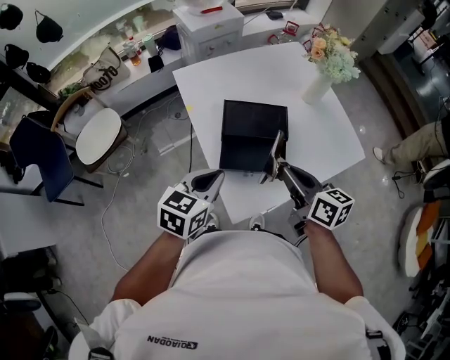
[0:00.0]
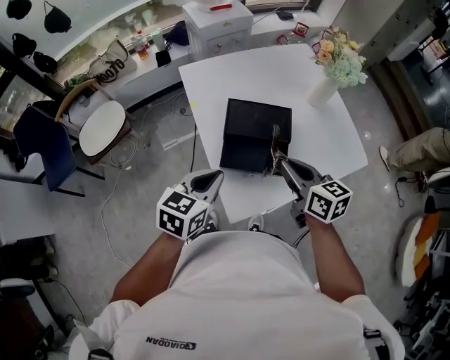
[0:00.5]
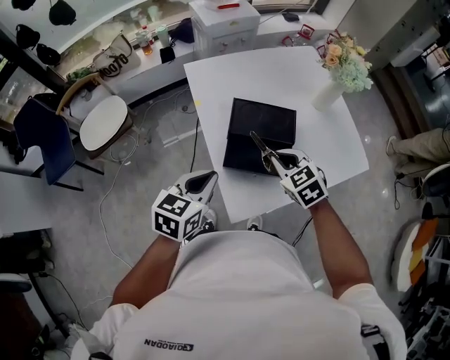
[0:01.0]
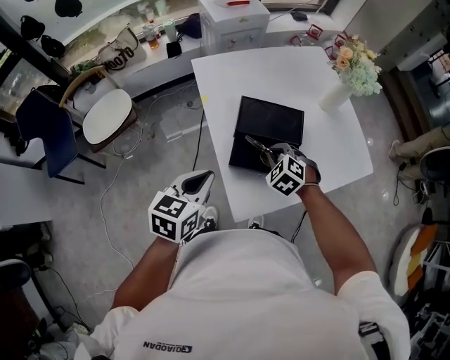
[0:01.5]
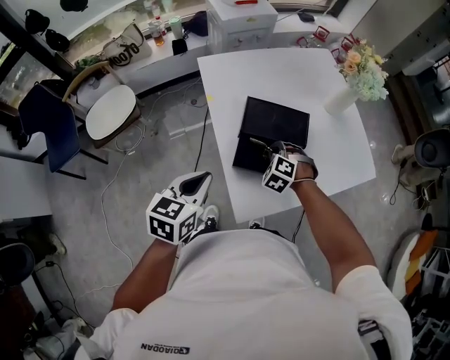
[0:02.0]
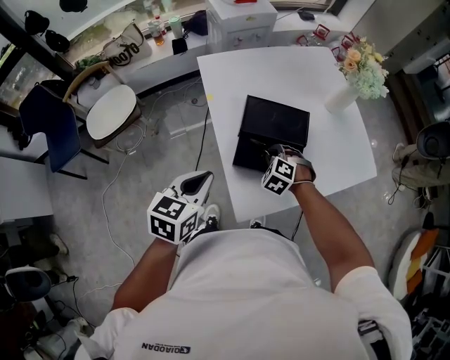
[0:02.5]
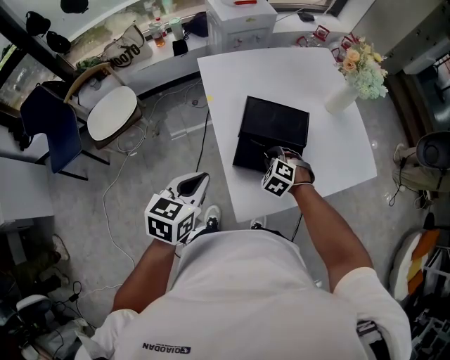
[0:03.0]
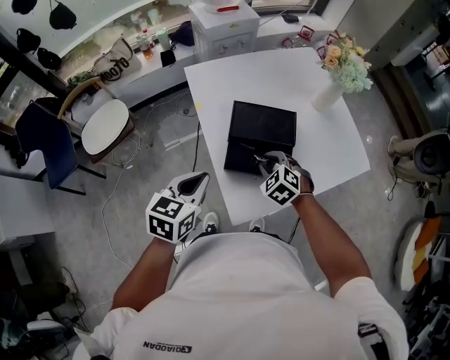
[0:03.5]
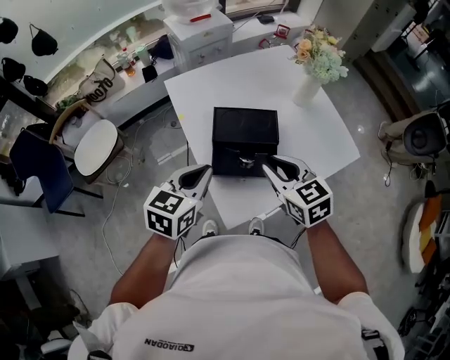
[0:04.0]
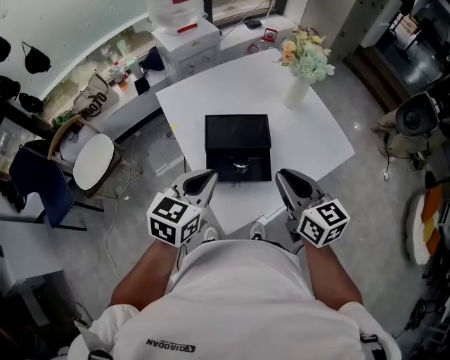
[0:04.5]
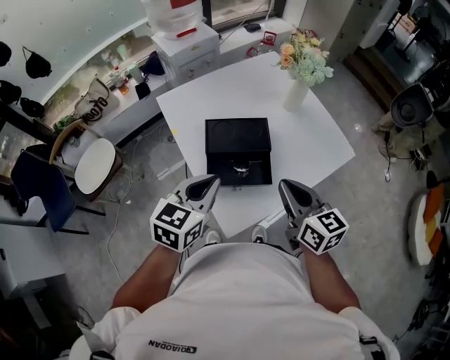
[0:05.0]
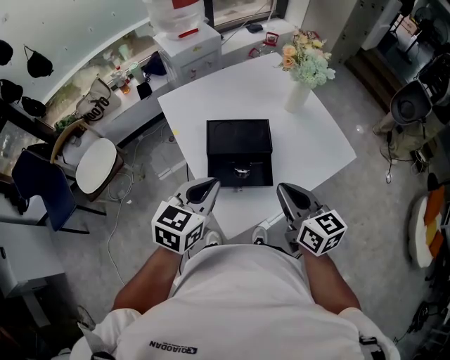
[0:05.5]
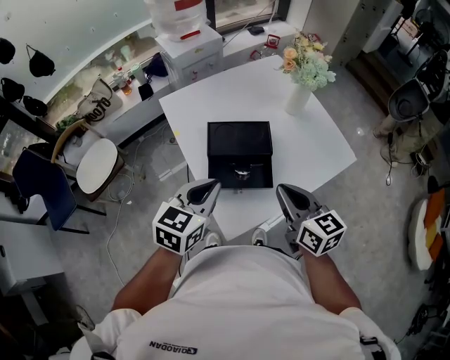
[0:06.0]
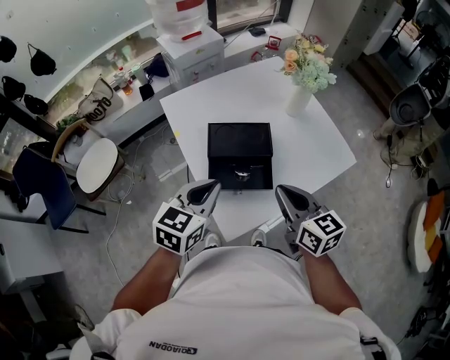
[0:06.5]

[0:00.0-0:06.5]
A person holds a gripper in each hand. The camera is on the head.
0:00.0 to 0:02.0: The right gripper travels downward and forward by about 20 cm, and rotates around the line of its fingers by roughly 80 degrees, counterclockwise from behind, while the left gripper is displaced to the left by approximately 5 cm.
0:02.0 to 0:04.5: The left gripper shifts approximately 10 cm to the right and upward. The right gripper moves upward and to the right, roughly 25 cm, and rotates around the line of its fingers by approximately 70 degrees, clockwise from behind.
0:04.5 to 0:06.5: The grippers move only a little.

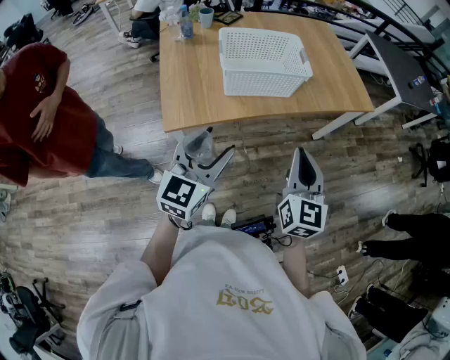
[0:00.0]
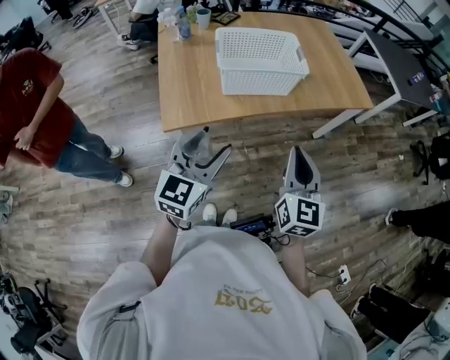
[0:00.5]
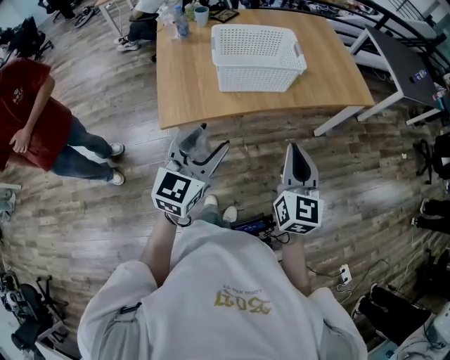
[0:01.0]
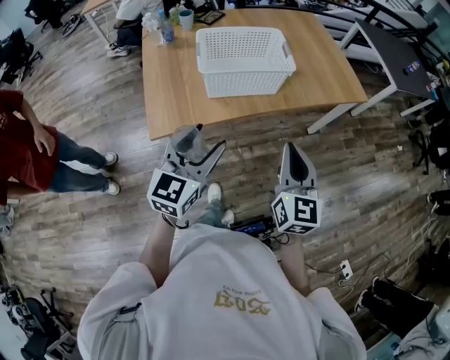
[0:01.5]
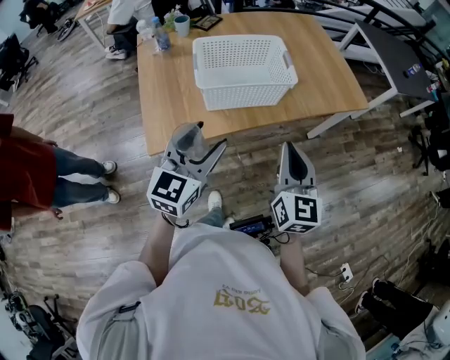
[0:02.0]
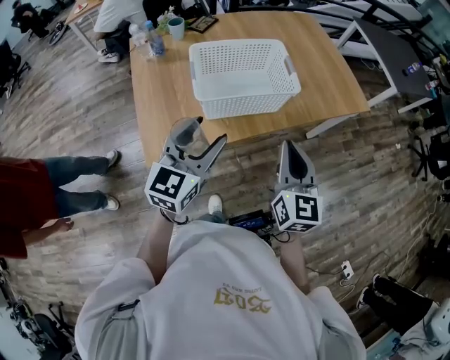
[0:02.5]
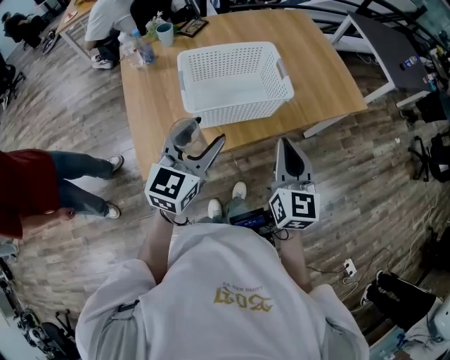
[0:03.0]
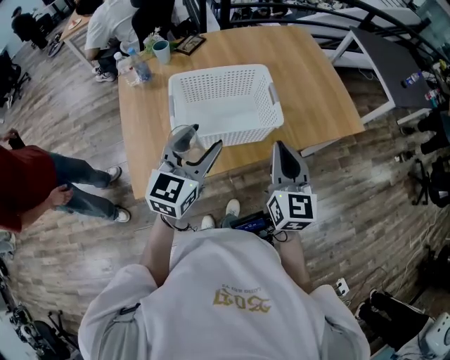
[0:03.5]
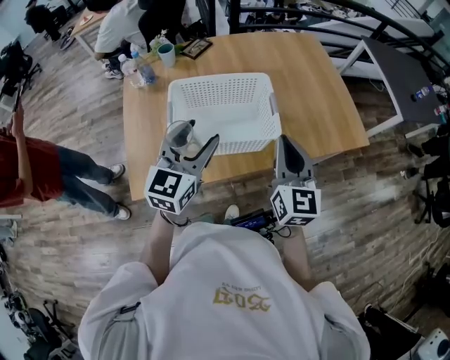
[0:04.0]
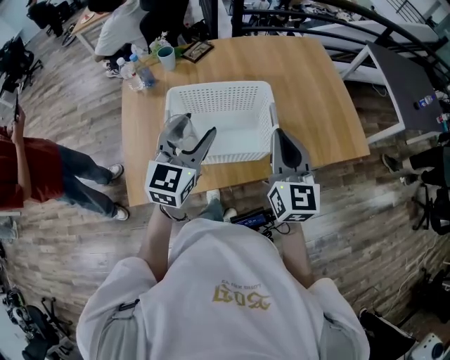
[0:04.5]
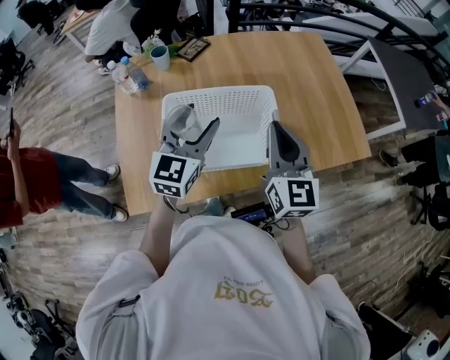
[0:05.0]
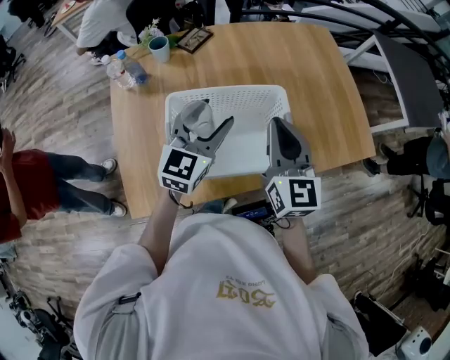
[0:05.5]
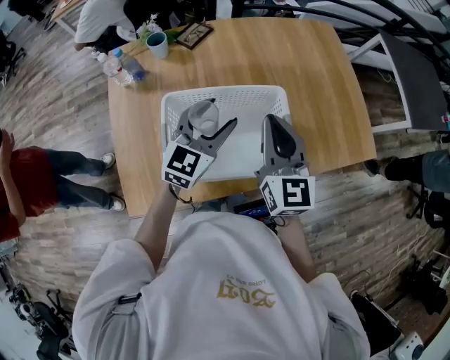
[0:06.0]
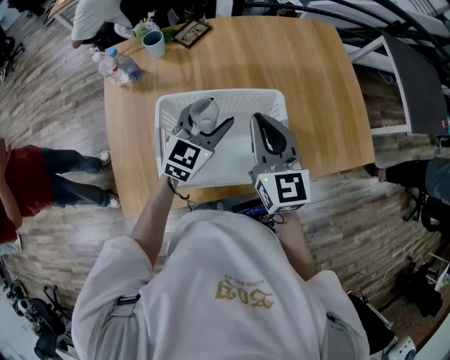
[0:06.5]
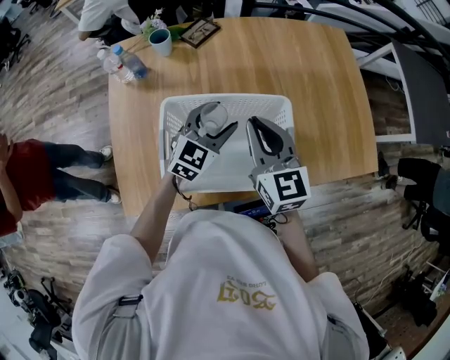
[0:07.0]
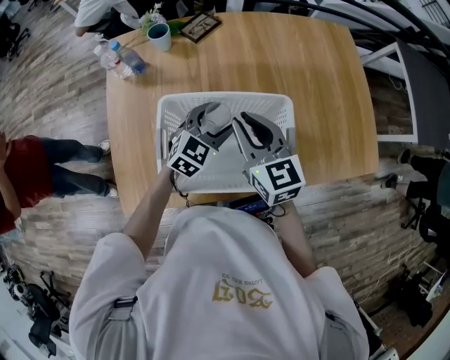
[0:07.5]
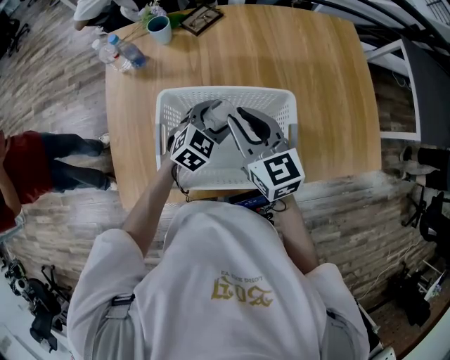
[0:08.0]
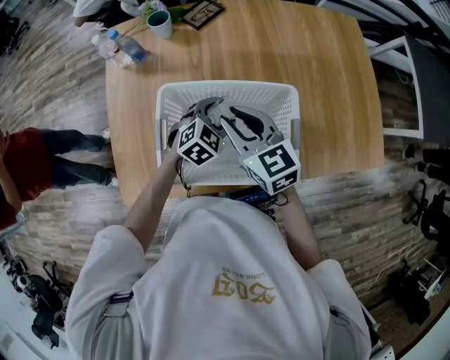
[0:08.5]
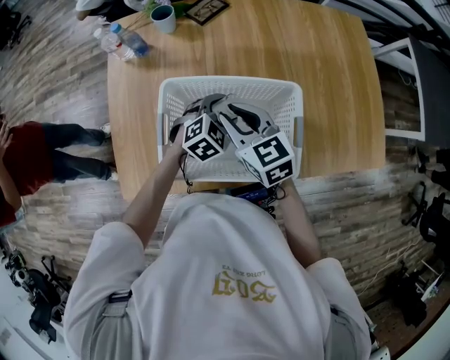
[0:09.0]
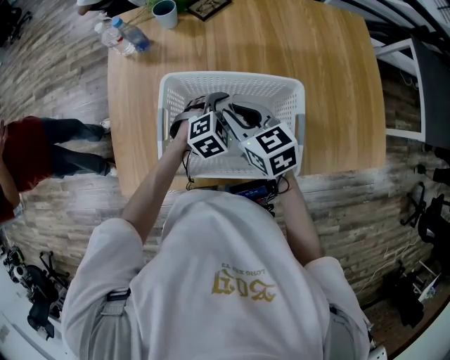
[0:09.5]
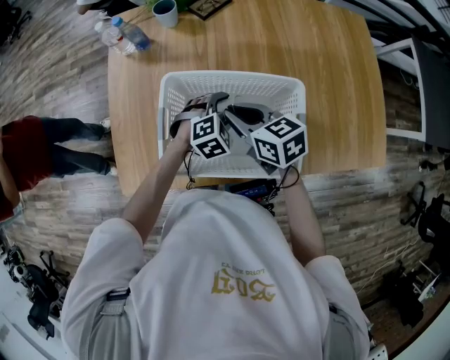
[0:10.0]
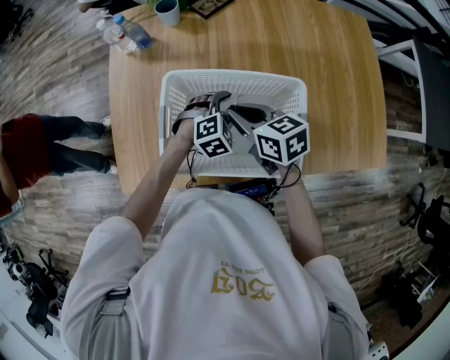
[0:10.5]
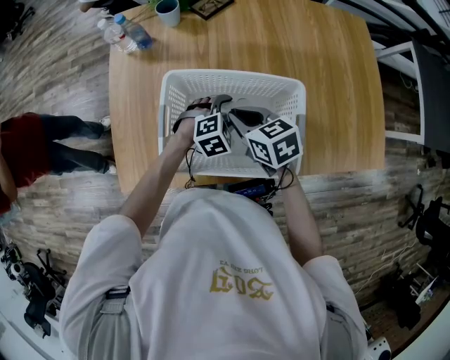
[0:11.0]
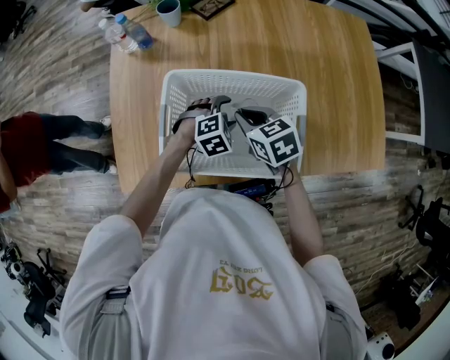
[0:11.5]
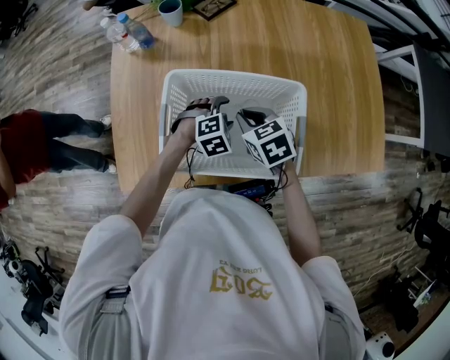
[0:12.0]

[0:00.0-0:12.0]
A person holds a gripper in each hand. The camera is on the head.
0:00.0 to 0:02.0: The grippers both shift forward by roughly 10 cm.
0:02.0 to 0:04.0: The grippers both shift forward by some 20 cm.
0:04.0 to 0:06.0: The right gripper travels forward and to the left by some 15 cm, while the left gripper goes about 15 cm forward.
0:06.0 to 0:08.0: The right gripper moves to the left and downward, some 10 cm, and swivels approximately 30 degrees; the left gripper heads downward, covering some 15 cm, and rotates approximately 30 degrees.
0:08.0 to 0:10.0: Both grippers travel together downward, roughly 5 cm. The right gripper rotates some 30 degrees. Meanwhile the left gripper changes its angle by some 20 degrees.
0:10.0 to 0:12.0: The right gripper is displaced downward by roughly 5 cm, and swivels about 20 degrees.

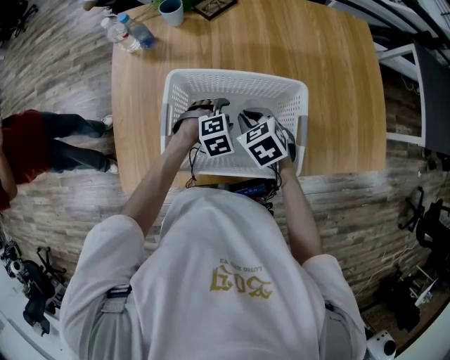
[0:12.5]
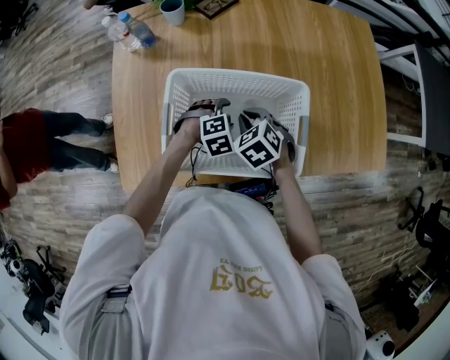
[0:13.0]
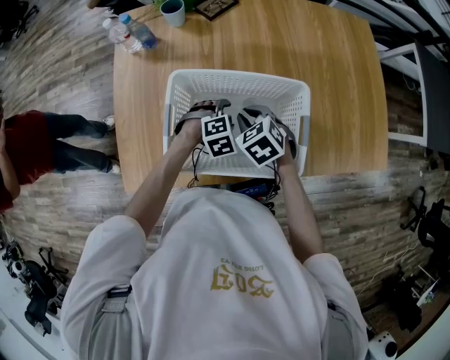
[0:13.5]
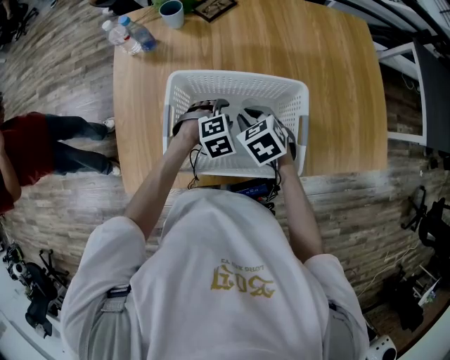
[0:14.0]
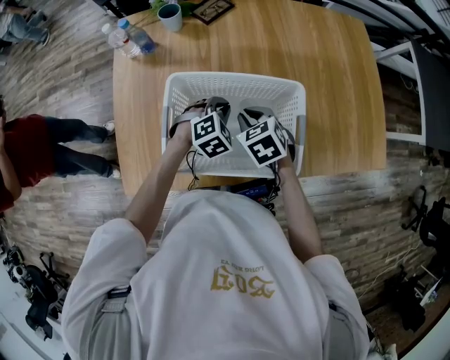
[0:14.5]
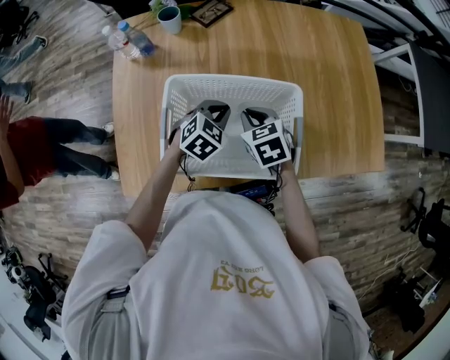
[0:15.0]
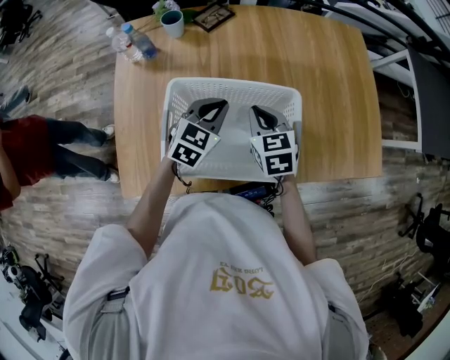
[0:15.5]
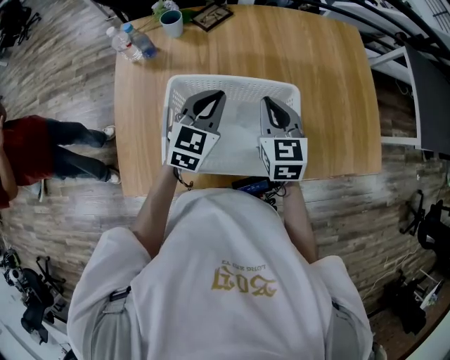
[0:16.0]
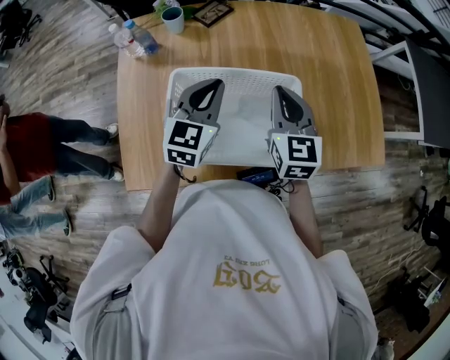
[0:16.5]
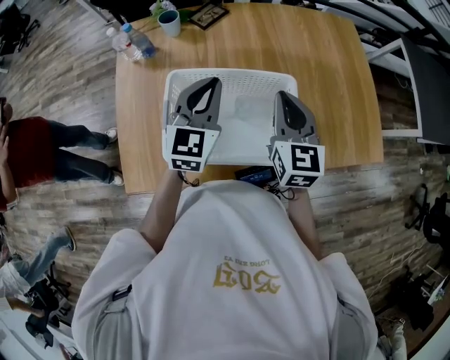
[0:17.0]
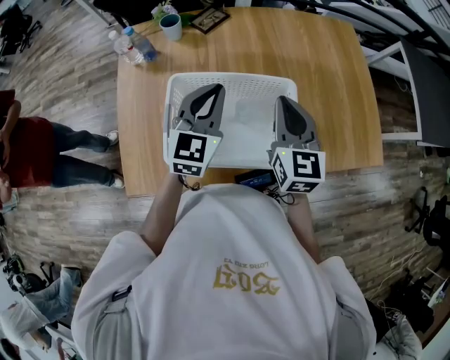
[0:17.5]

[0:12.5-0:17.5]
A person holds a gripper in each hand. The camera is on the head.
0:12.5 to 0:15.0: The left gripper is displaced upward by approximately 10 cm, turns by about 30 degrees, and closes up.
0:15.0 to 0:17.5: The right gripper travels upward and to the right by roughly 20 cm, and tips its fingers upward by about 40 degrees. The left gripper is displaced upward by about 15 cm, and tilts its fingers approximately 40 degrees upward.

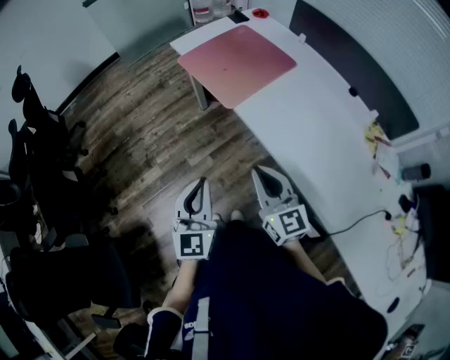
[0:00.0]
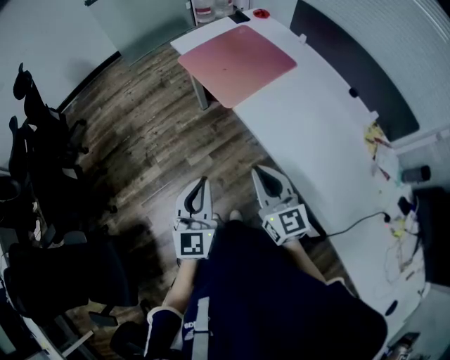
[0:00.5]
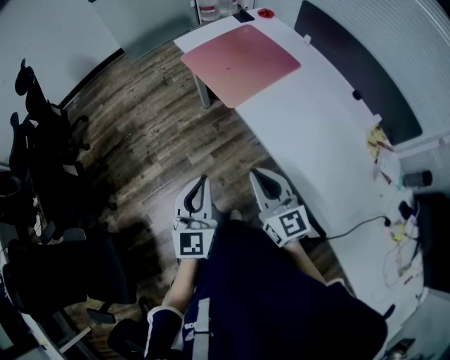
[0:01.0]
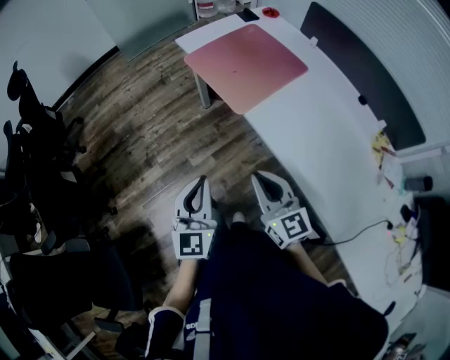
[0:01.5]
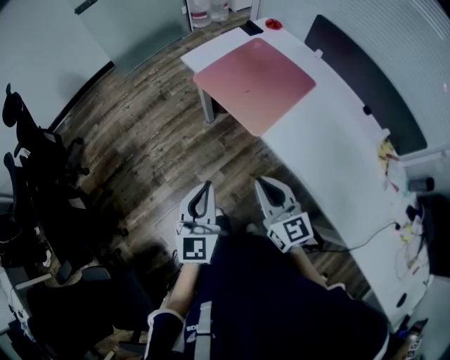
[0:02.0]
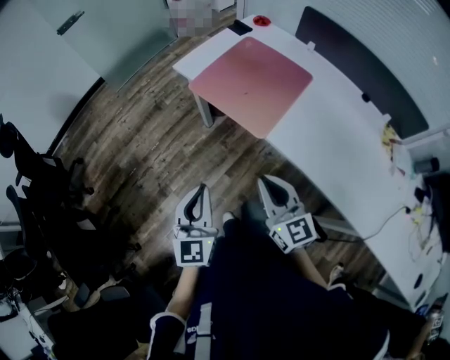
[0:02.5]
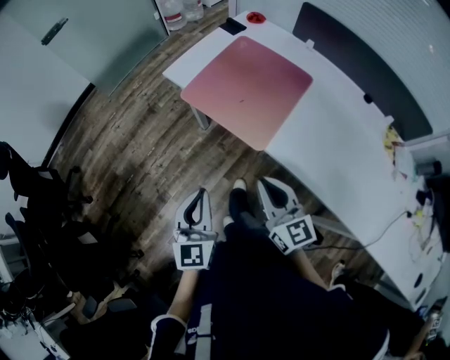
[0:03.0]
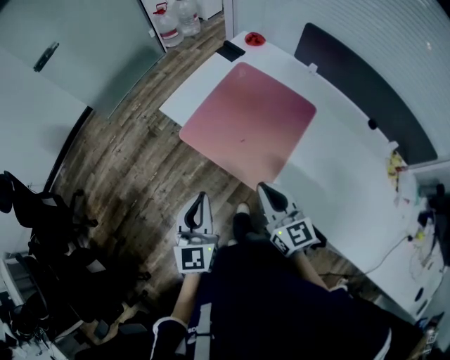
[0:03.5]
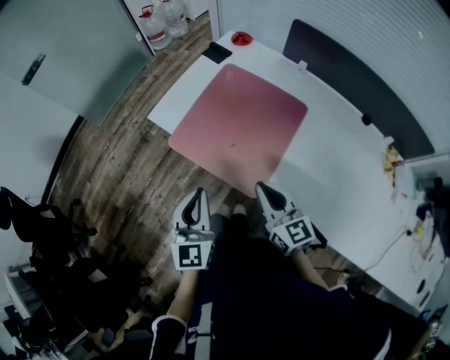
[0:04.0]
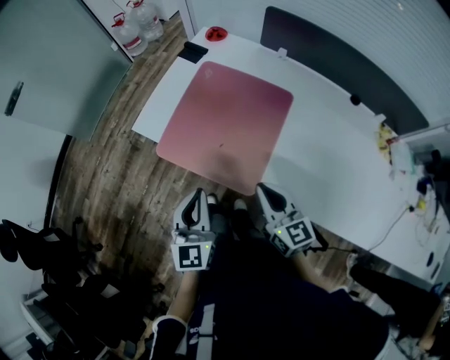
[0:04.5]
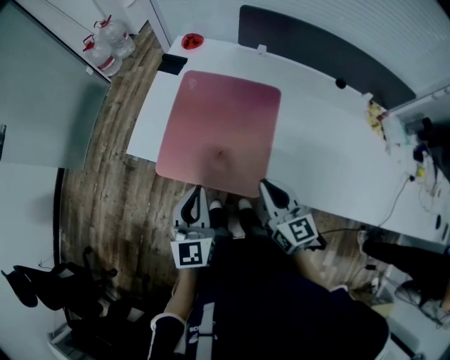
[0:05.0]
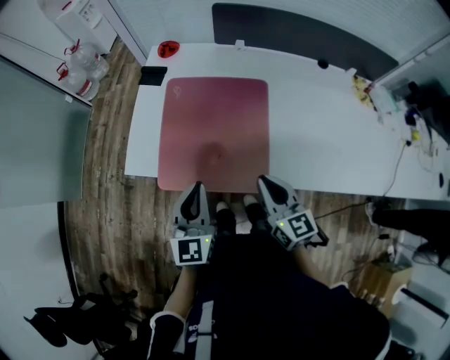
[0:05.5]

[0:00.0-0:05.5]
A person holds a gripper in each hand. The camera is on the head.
0:00.0 to 0:02.0: Both grippers travel together forward and to the left, approximately 15 cm.
0:02.0 to 0:03.5: The grippers both shift forward by approximately 25 cm.
0:03.5 to 0:05.5: The left gripper shifts by about 15 cm, and rotates some 30 degrees, while the right gripper shifts by some 5 cm, and rotates about 40 degrees.
